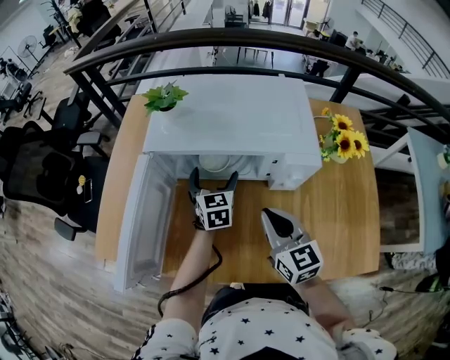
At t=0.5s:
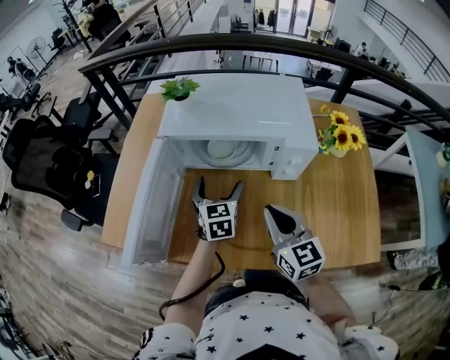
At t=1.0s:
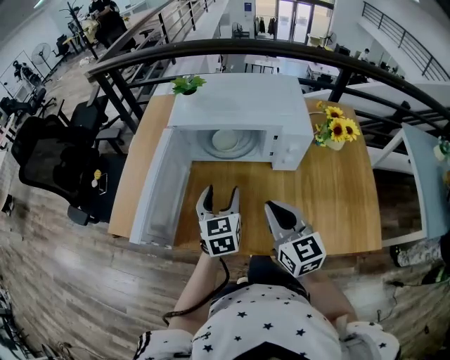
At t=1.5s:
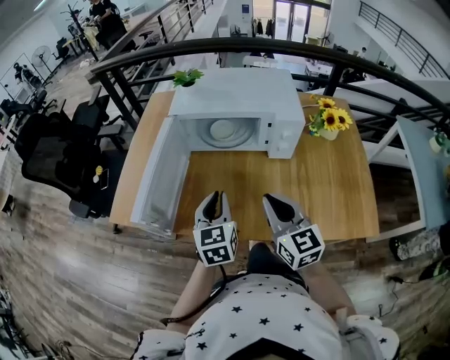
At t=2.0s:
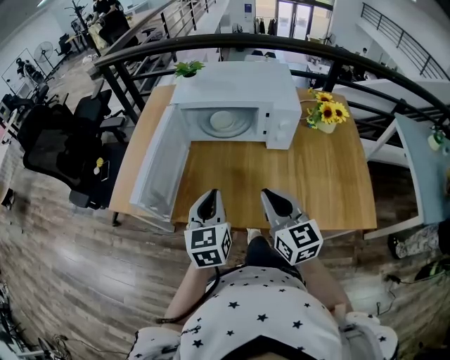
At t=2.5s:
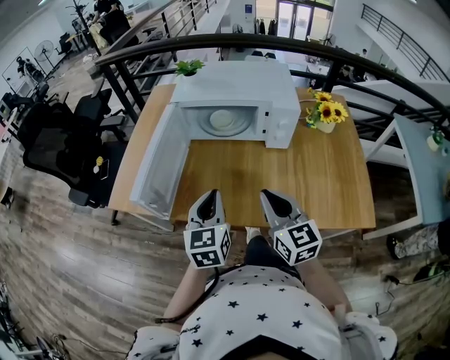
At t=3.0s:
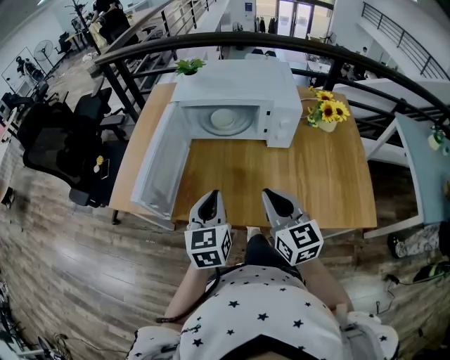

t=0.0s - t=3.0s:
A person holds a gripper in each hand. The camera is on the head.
t=0.0s - t=1.5s: The left gripper moves backward, some 25 cm, and closes its fingers. Meanwhile the right gripper moves backward, roughly 15 cm.
t=1.5s - t=3.0s: The left gripper heads backward, covering approximately 5 cm.

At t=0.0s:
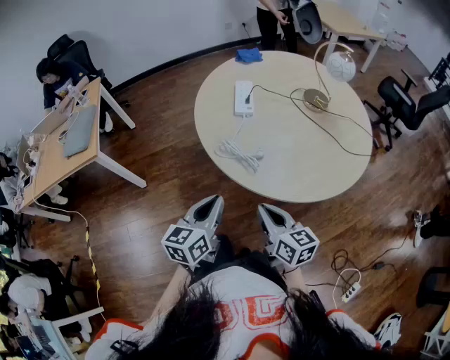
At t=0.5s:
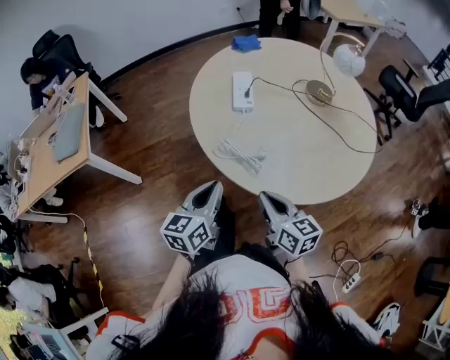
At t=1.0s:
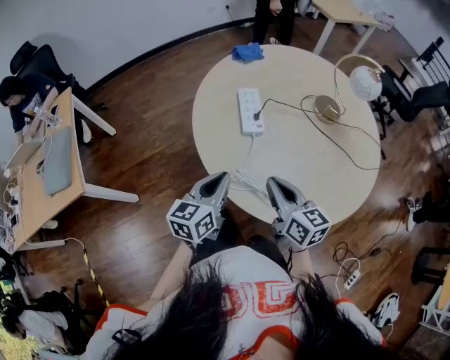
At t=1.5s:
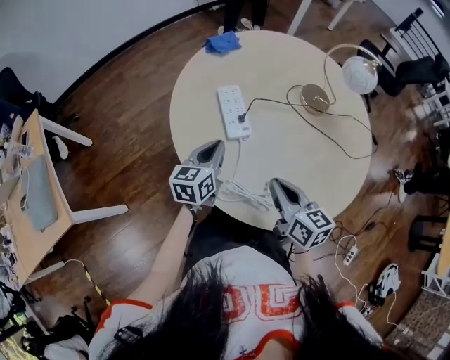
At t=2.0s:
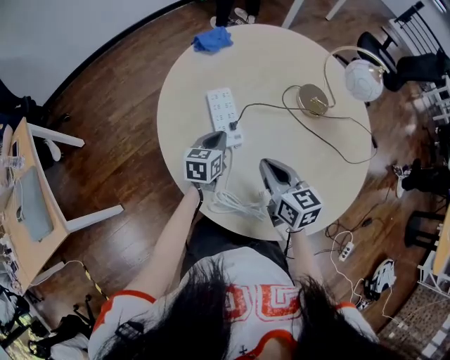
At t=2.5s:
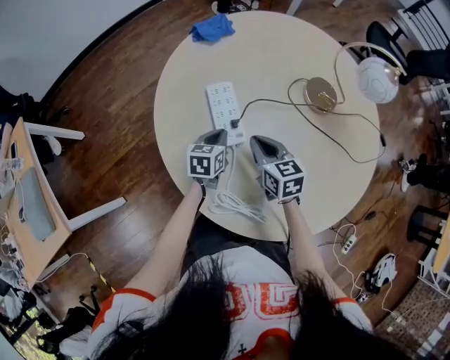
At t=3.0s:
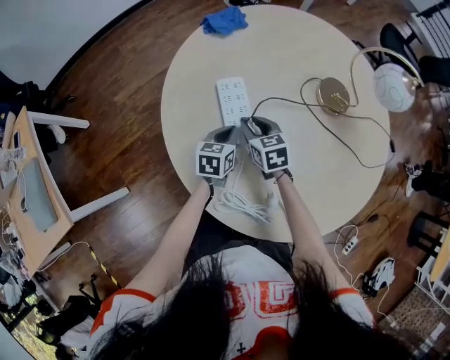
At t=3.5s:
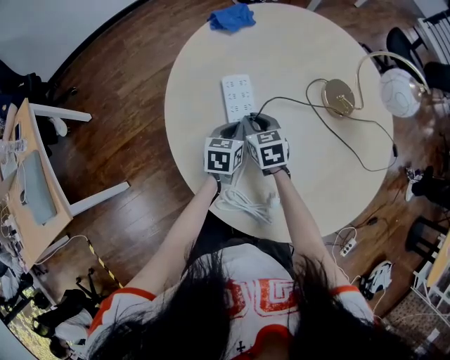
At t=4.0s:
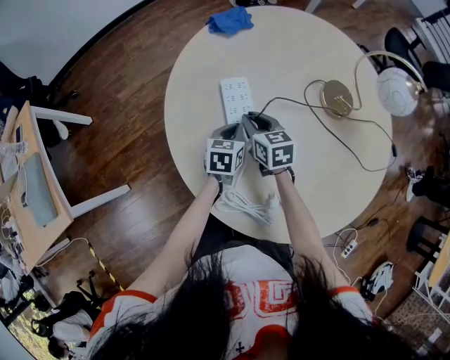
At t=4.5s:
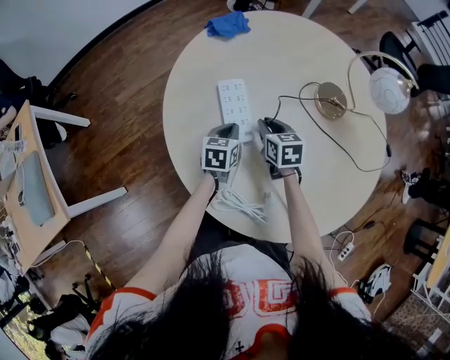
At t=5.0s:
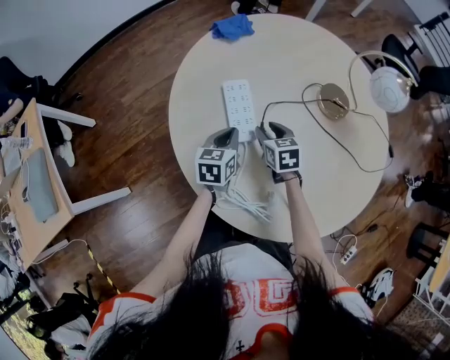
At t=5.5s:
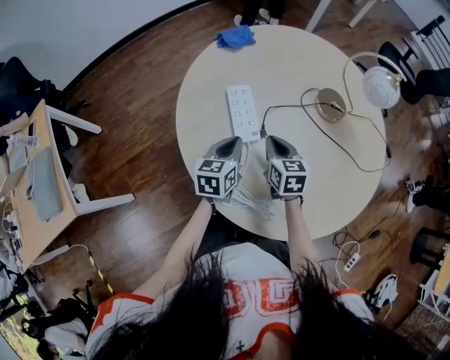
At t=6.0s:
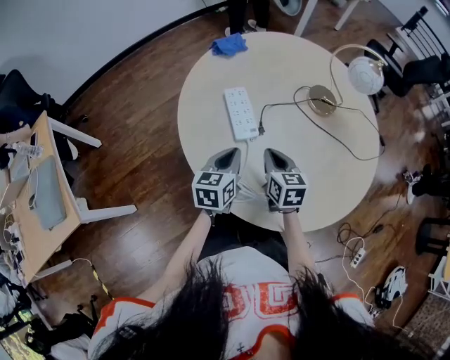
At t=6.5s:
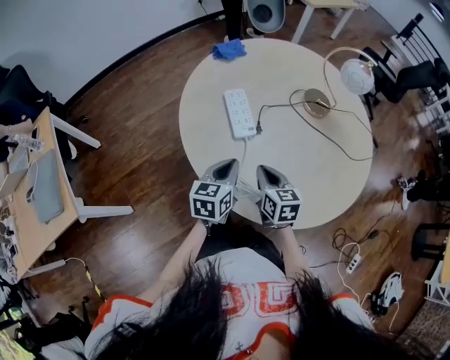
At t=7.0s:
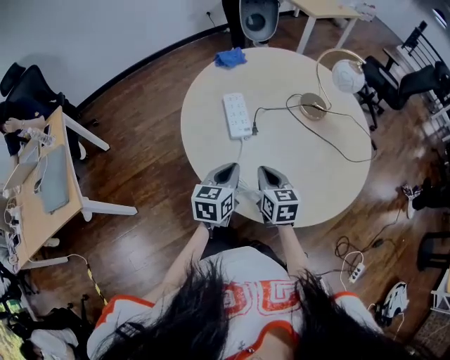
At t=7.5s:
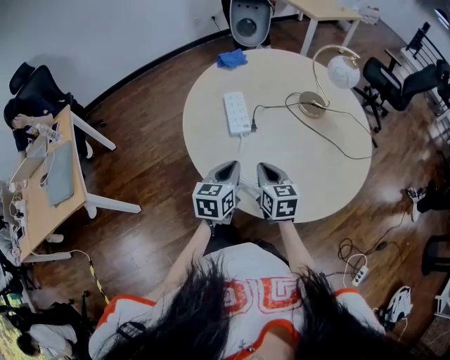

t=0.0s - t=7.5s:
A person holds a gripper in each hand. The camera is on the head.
t=0.0s - t=2.0s: Both grippers travel together forward, approximately 40 cm. The left gripper changes its angle by roughly 20 degrees, while the right gripper changes its angle by about 20 degrees.
t=2.0s - t=4.0s: The right gripper heads forward, downward and to the left, covering about 20 cm.
t=4.0s - t=5.5s: The right gripper is displaced backward and to the right by some 10 cm, and opens and closes again. The left gripper heads upward and backward, covering roughly 10 cm.
t=5.5s - t=7.5s: Both grippers move backward, about 15 cm.

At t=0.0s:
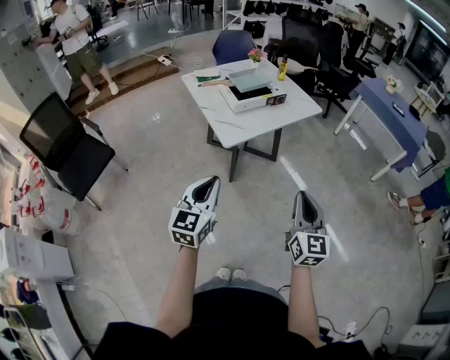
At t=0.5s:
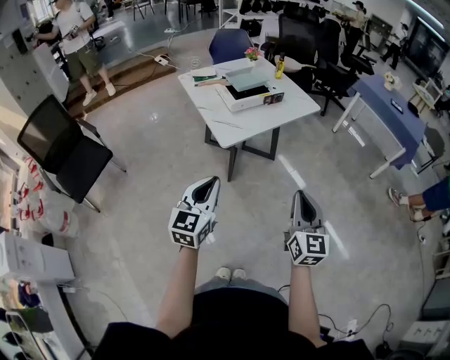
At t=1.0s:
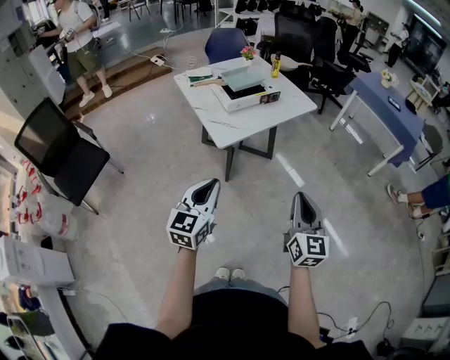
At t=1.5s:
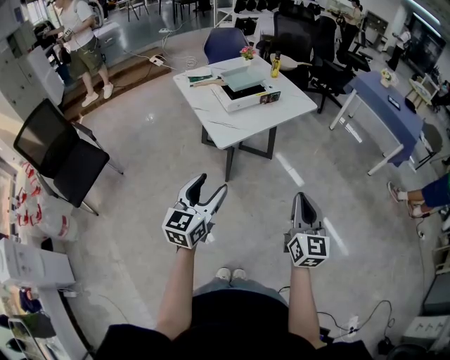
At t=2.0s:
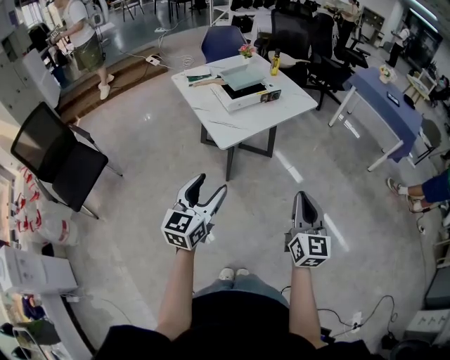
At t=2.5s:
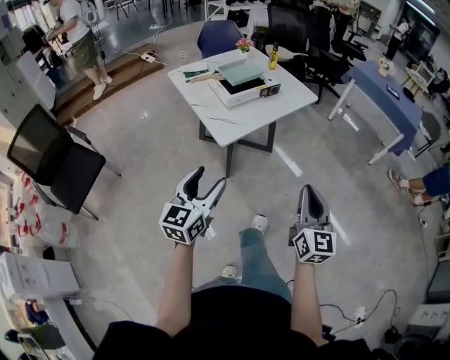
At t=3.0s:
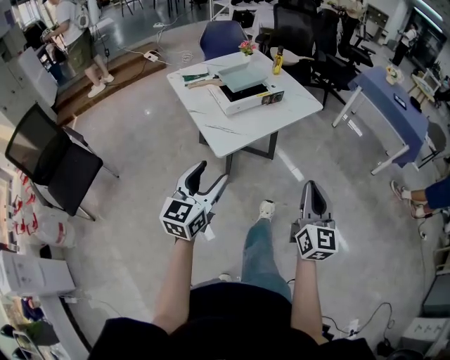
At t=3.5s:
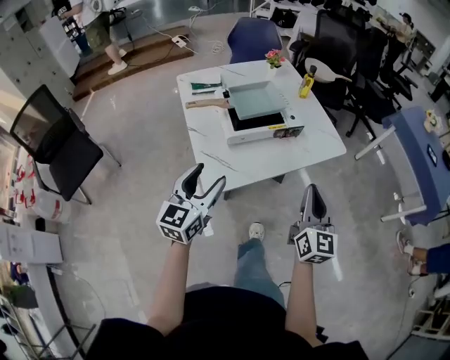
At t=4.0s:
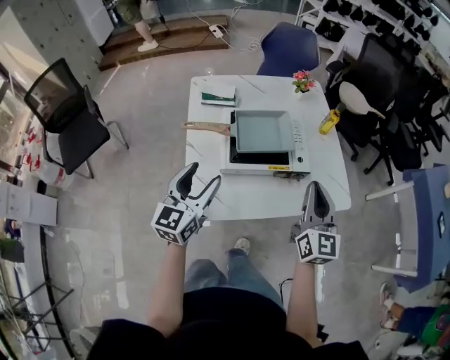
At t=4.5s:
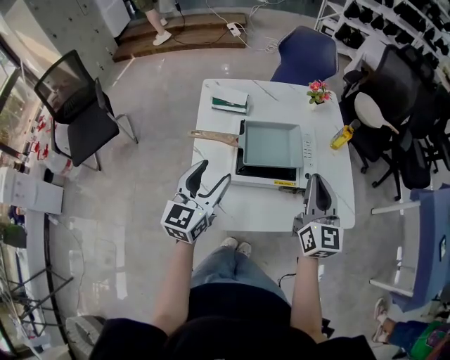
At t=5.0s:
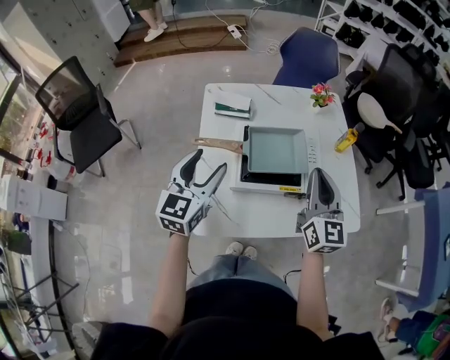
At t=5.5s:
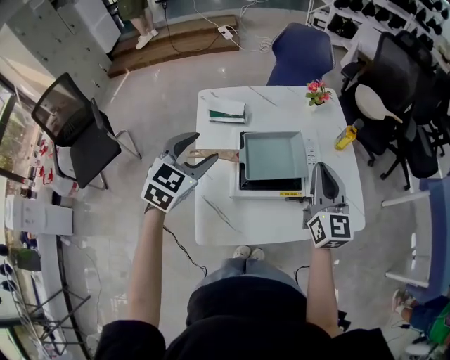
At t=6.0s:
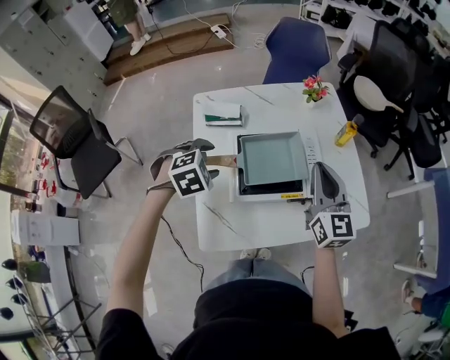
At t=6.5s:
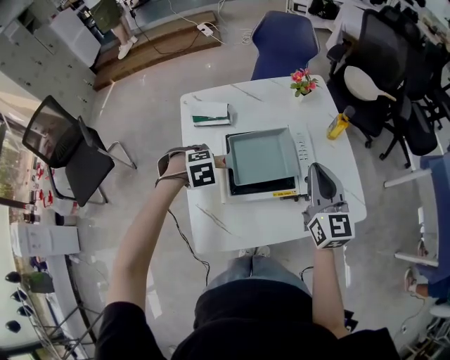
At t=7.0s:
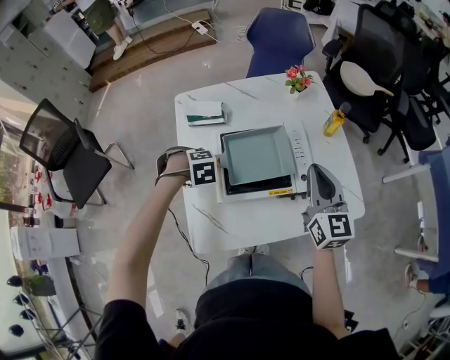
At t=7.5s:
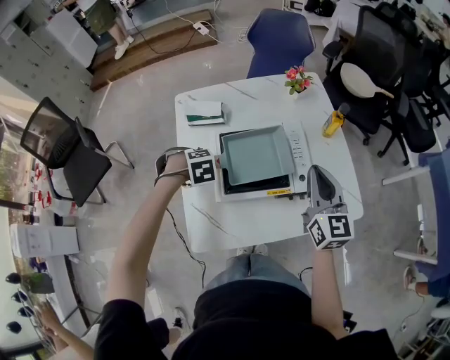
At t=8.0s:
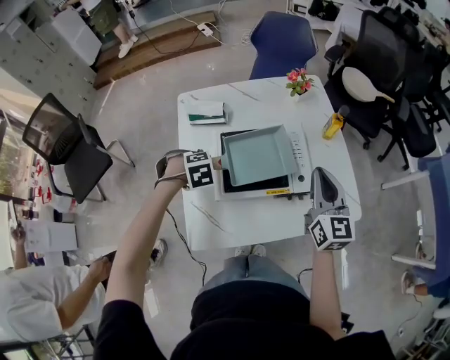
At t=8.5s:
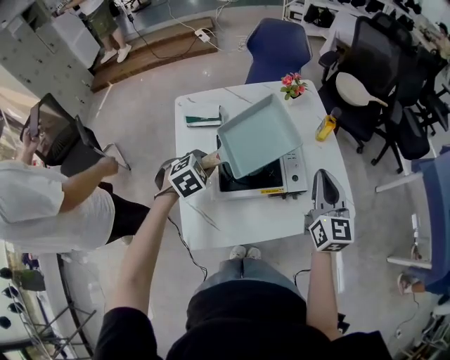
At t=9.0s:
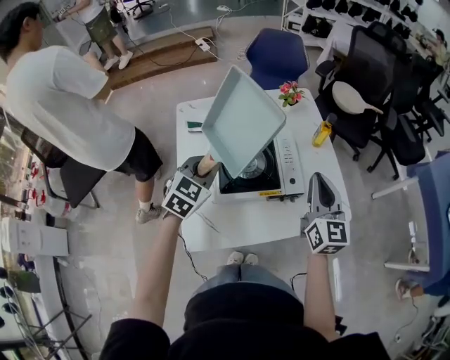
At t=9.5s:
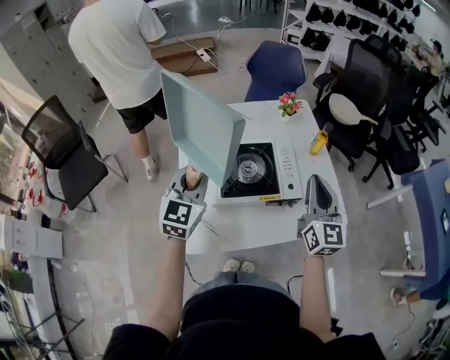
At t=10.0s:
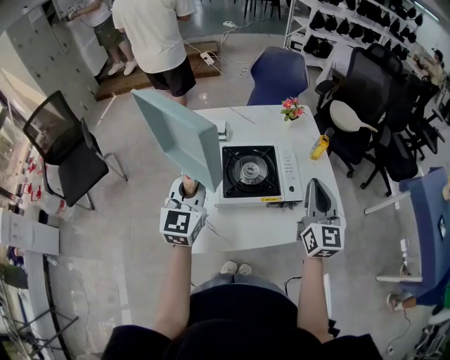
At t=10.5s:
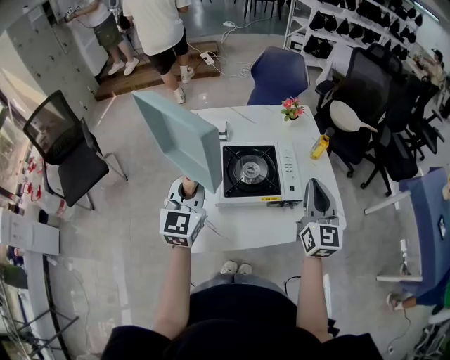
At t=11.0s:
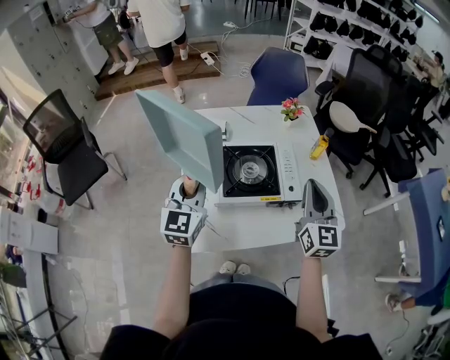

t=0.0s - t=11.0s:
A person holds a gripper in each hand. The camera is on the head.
t=0.0s - t=2.0s: The left gripper opens its fingers.
t=2.0s - t=3.5s: Both grippers move forward, approximately 35 cm.
t=3.5s - t=5.5s: Both grippers travel together forward, approximately 35 cm. The right gripper rotates about 20 degrees. The left gripper turns by about 30 degrees.
t=5.5s - t=7.5s: The left gripper heads downward, covering roughly 20 cm, points its fingers roughly 60 degrees further downward, and closes its fingers. Meanwhile the right gripper moves roughly 5 cm.
t=7.5s - t=9.0s: The left gripper is displaced upward by some 15 cm, and angles its fingers upward, by some 50 degrees; the right gripper shifts by approximately 5 cm.
t=9.0s - t=11.0s: The left gripper is displaced upward, backward and to the left by roughly 10 cm, and rotates about 40 degrees.

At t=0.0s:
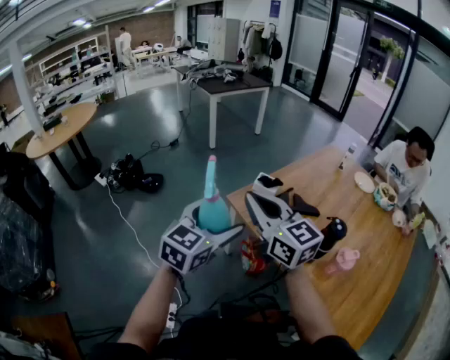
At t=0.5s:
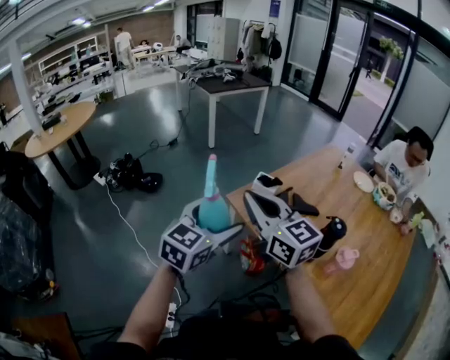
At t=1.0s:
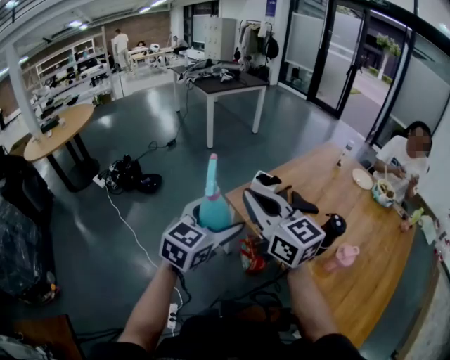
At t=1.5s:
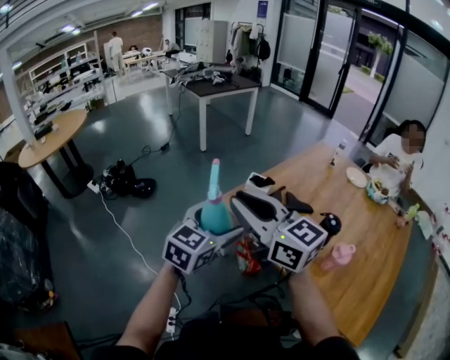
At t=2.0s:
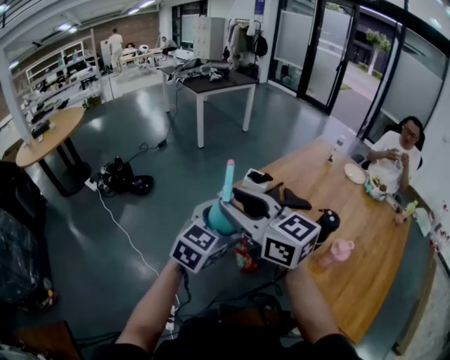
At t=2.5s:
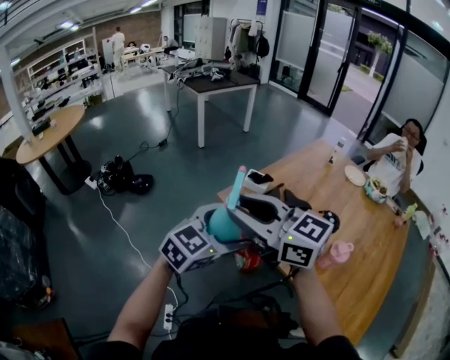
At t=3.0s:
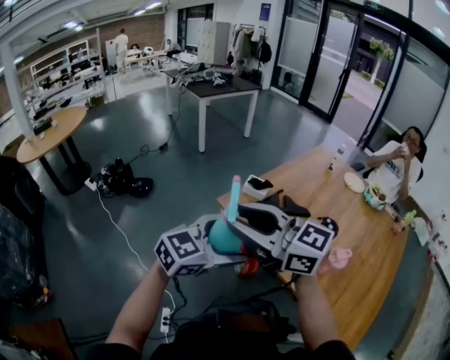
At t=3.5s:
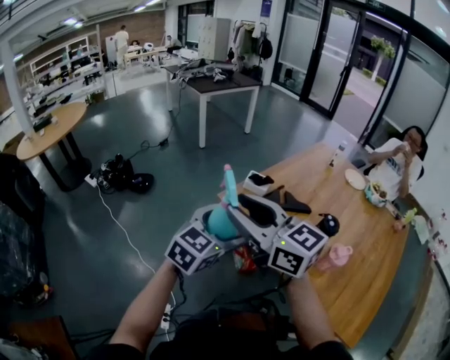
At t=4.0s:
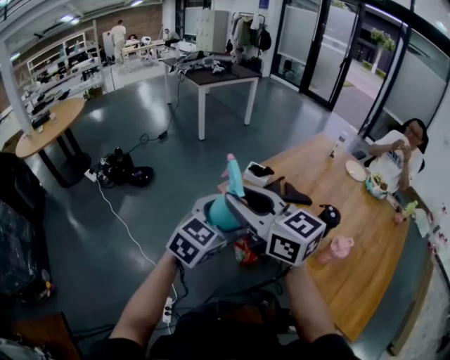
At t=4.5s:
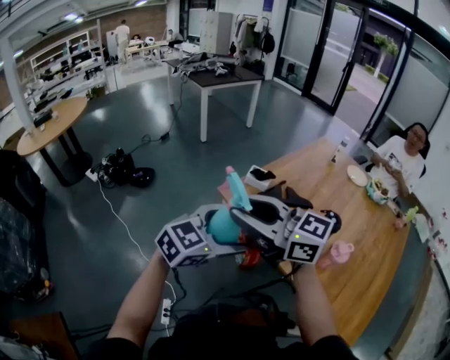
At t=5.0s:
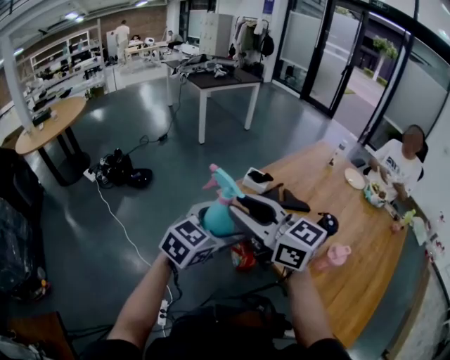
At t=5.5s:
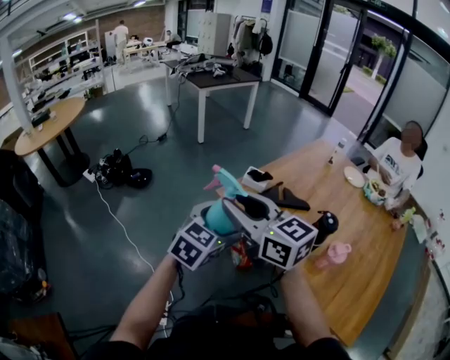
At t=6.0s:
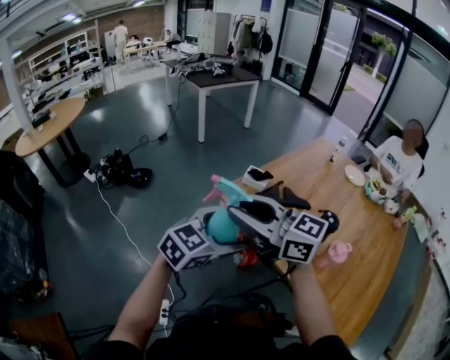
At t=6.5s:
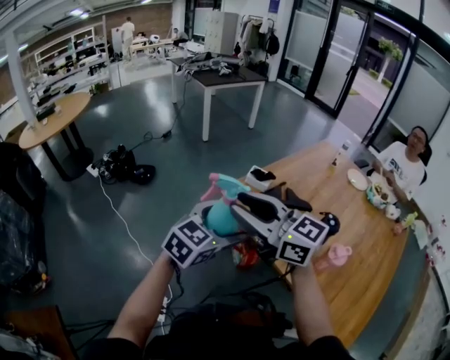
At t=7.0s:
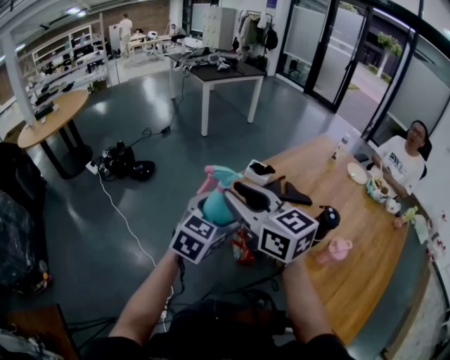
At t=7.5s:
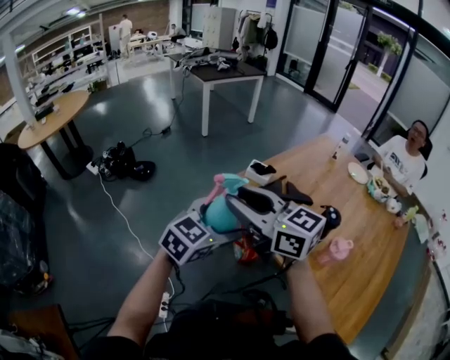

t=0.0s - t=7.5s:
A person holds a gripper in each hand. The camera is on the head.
t=0.0s - t=2.0s: The right gripper ends up some 5 cm from where it was, and opens up.
t=4.0s - t=5.5s: The grippers move only a little.
